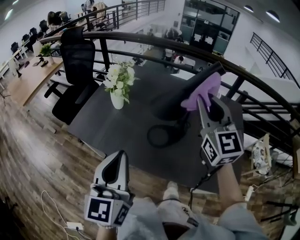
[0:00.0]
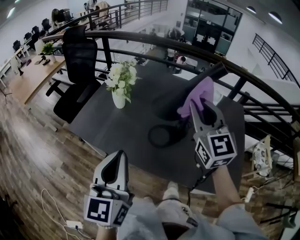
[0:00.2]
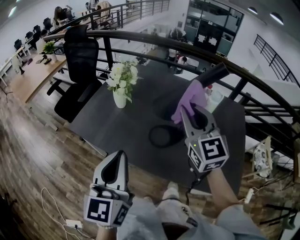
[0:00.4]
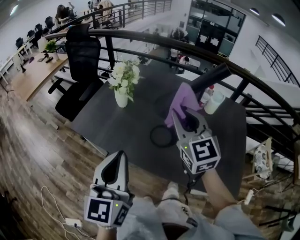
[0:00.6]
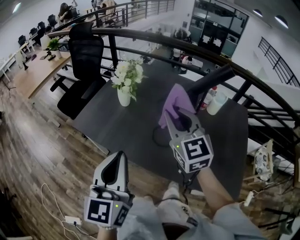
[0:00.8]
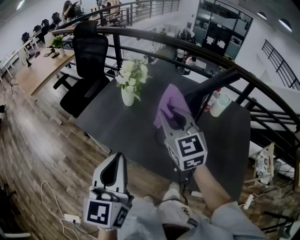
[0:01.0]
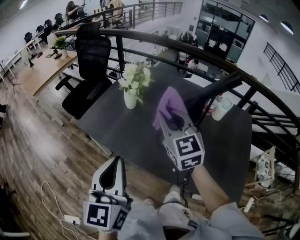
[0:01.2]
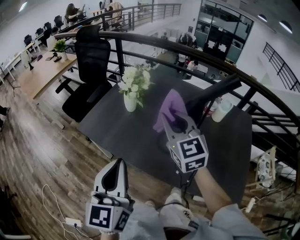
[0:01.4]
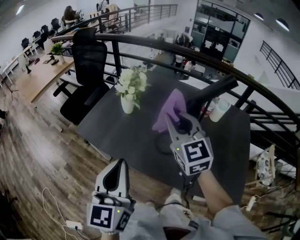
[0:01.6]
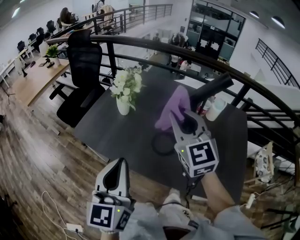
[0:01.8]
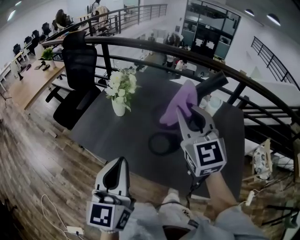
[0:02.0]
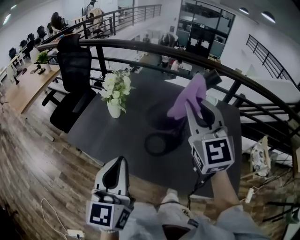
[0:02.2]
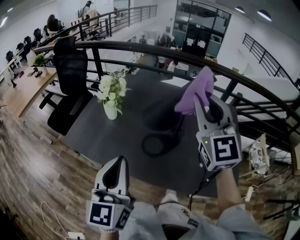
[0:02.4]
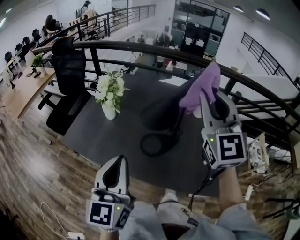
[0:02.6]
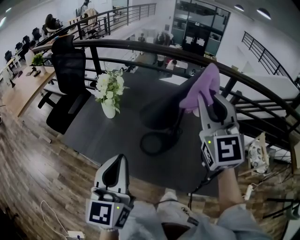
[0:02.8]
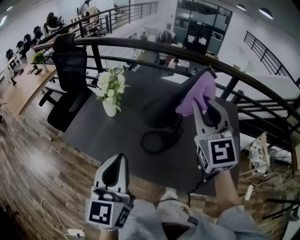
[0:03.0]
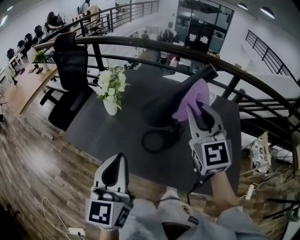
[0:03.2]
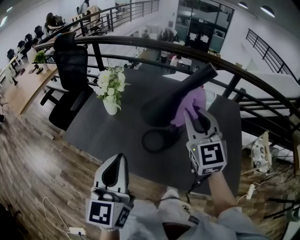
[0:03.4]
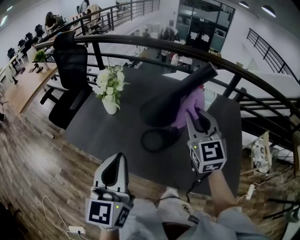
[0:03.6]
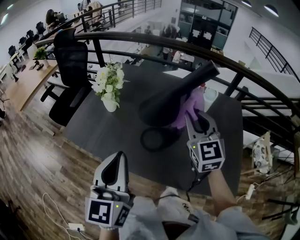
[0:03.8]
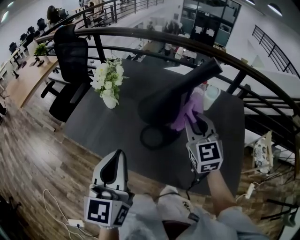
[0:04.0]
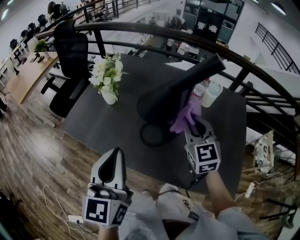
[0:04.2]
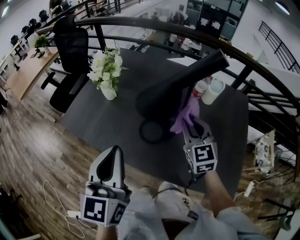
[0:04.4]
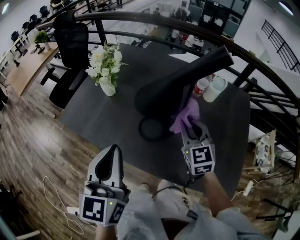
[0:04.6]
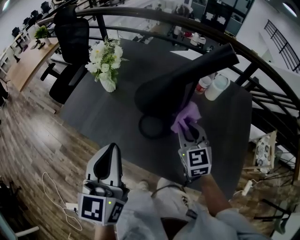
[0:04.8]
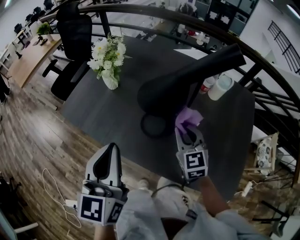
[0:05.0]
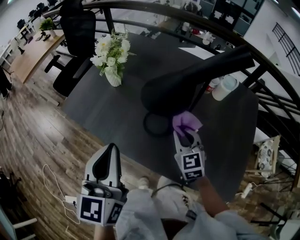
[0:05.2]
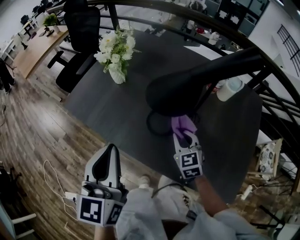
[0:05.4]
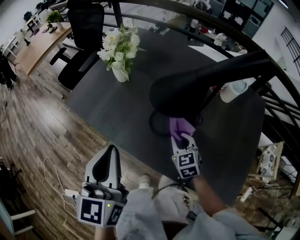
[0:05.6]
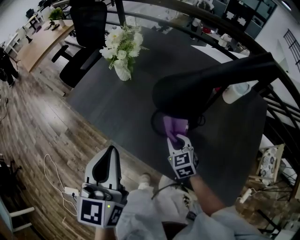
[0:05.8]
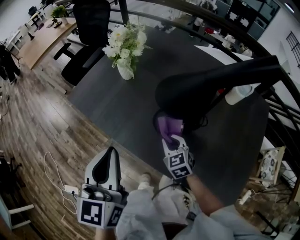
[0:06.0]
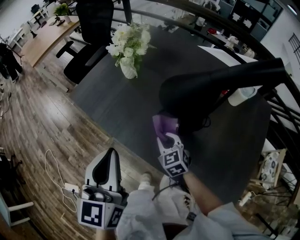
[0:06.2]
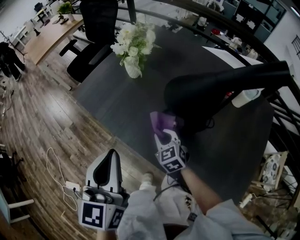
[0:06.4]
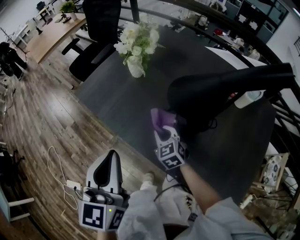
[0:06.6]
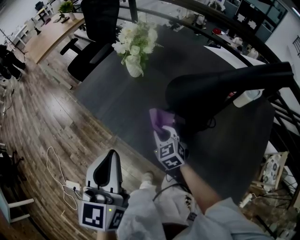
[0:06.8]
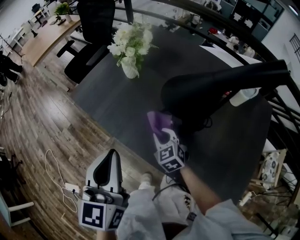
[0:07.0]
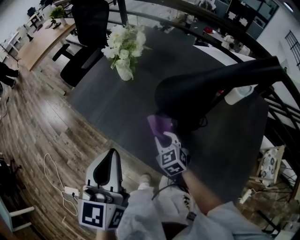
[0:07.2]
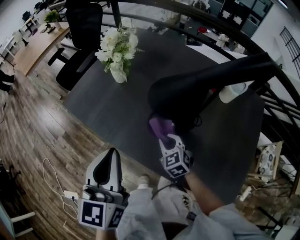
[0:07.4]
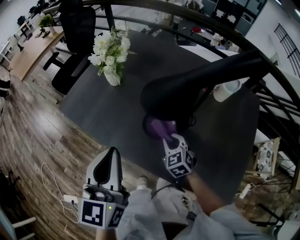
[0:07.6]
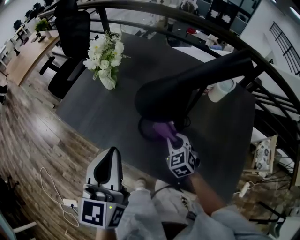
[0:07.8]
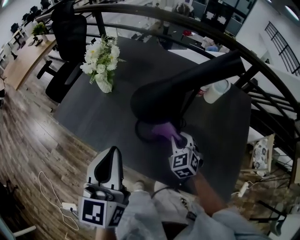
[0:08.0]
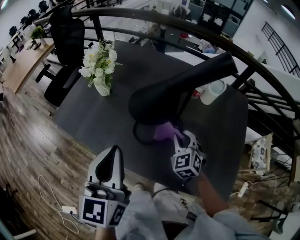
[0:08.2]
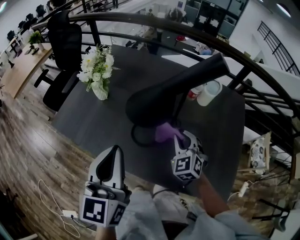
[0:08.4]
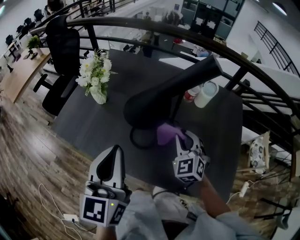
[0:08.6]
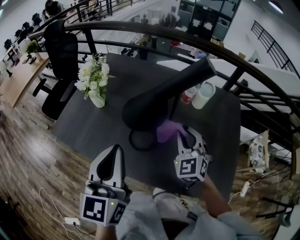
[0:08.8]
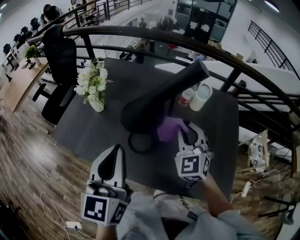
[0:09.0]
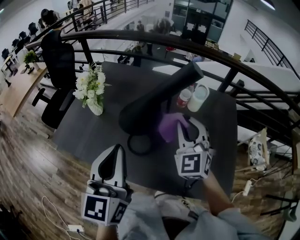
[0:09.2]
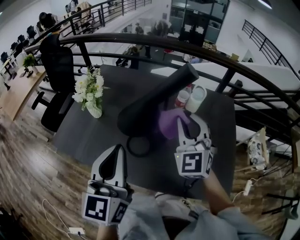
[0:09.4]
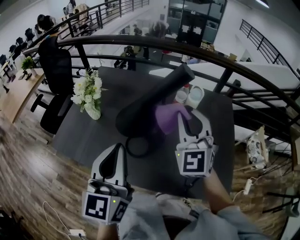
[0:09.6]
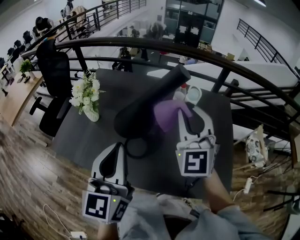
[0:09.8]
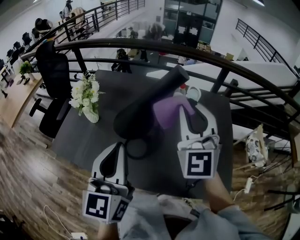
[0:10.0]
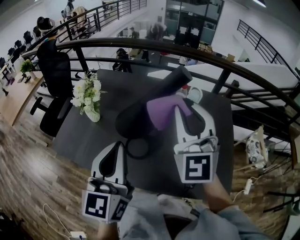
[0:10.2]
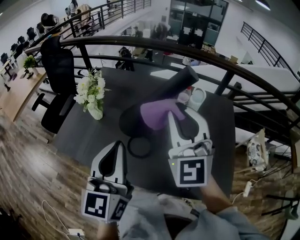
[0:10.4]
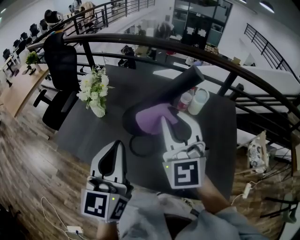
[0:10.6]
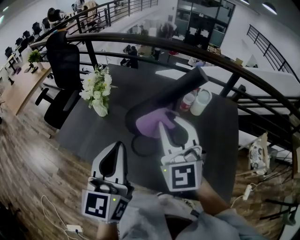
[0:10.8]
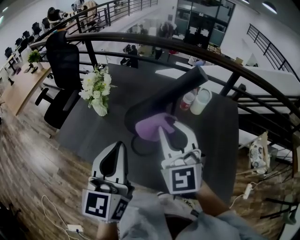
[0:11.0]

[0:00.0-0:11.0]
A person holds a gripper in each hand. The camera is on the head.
0:00.0 to 0:01.6: The right gripper travels to the left and downward by about 15 cm.
0:01.6 to 0:03.2: The left gripper is displaced to the right by about 5 cm; the right gripper moves to the right, roughly 15 cm.
0:03.2 to 0:04.8: The right gripper shifts approximately 20 cm downward, and changes its angle by approximately 20 degrees.
0:04.8 to 0:06.2: The left gripper shifts by some 5 cm. The right gripper shifts some 20 cm downward and to the left, and swivels some 30 degrees.
0:06.2 to 0:07.8: The left gripper moves to the right, about 5 cm, while the right gripper travels to the right by approximately 10 cm.
0:07.8 to 0:09.4: The right gripper goes approximately 30 cm upward, and tilts its fingers approximately 40 degrees upward. Meanwhile the left gripper shifts approximately 10 cm upward and to the right.
0:09.4 to 0:11.0: The right gripper travels to the left by about 10 cm, and goes upward and returns, some 10 cm each way.

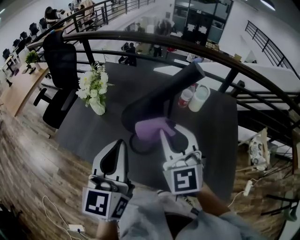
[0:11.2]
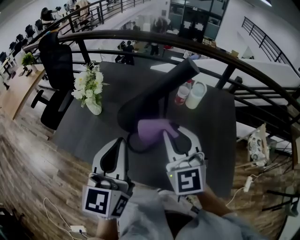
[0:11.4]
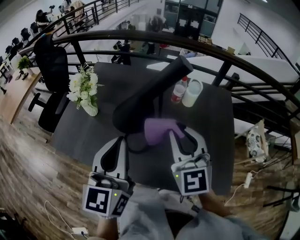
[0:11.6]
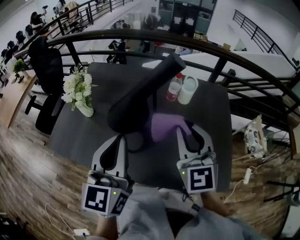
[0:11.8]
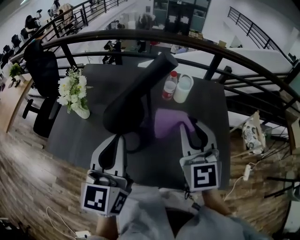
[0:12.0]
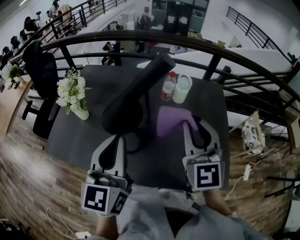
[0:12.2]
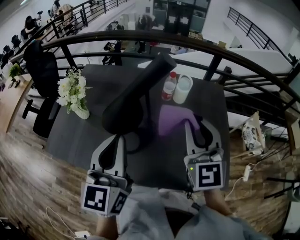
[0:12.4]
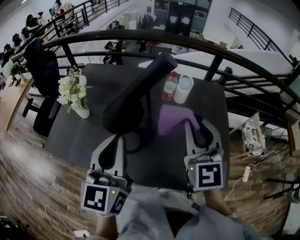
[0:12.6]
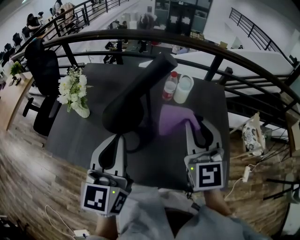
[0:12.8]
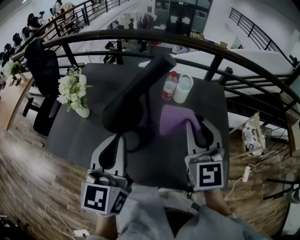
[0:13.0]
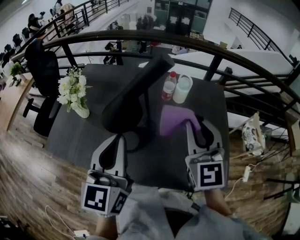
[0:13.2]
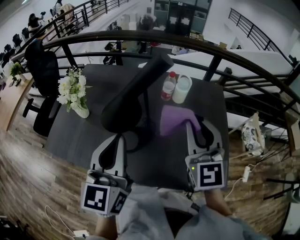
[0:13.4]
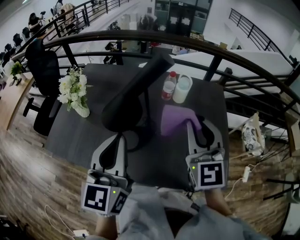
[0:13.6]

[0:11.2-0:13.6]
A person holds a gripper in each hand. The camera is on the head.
0:11.2 to 0:12.4: The right gripper is displaced to the right by about 15 cm; the left gripper moves about 5 cm.
0:12.4 to 0:13.6: Neither gripper changes place.

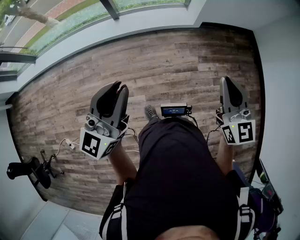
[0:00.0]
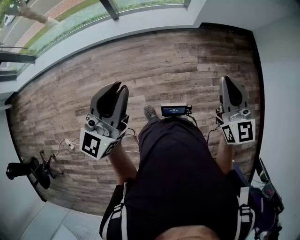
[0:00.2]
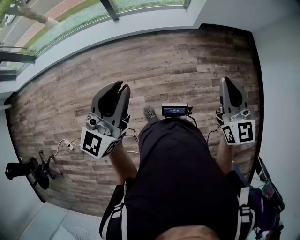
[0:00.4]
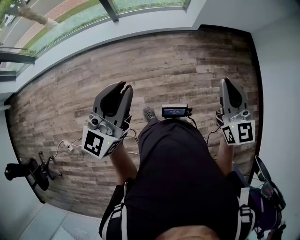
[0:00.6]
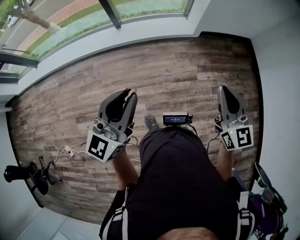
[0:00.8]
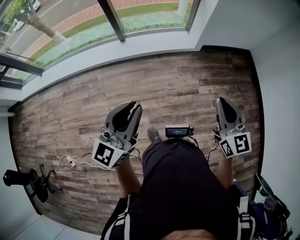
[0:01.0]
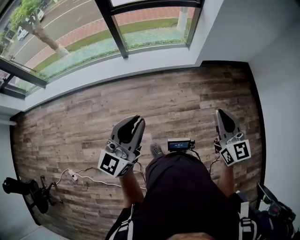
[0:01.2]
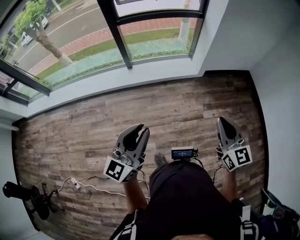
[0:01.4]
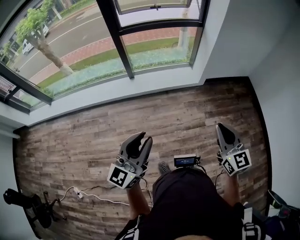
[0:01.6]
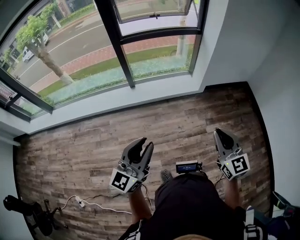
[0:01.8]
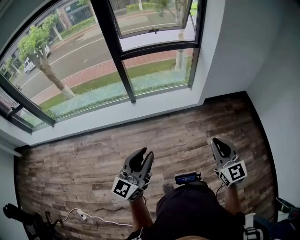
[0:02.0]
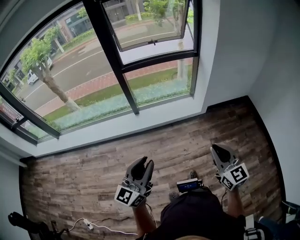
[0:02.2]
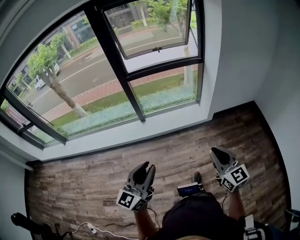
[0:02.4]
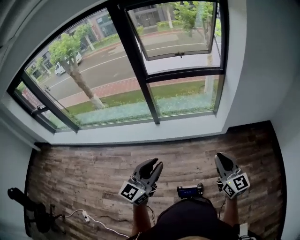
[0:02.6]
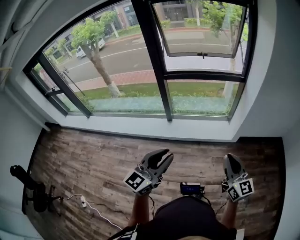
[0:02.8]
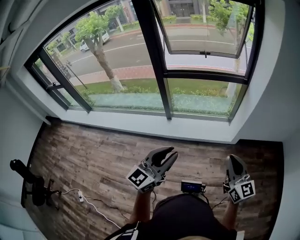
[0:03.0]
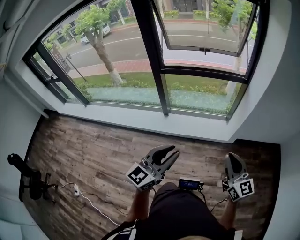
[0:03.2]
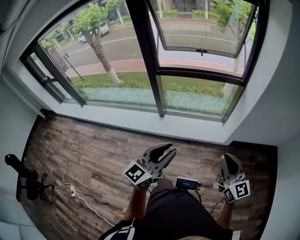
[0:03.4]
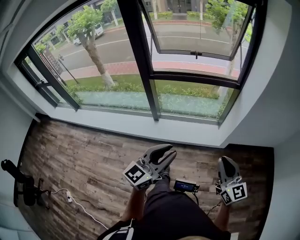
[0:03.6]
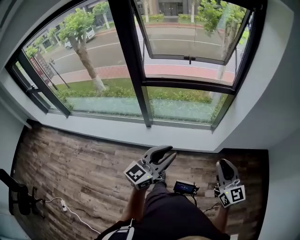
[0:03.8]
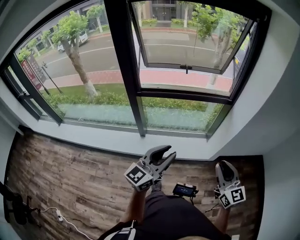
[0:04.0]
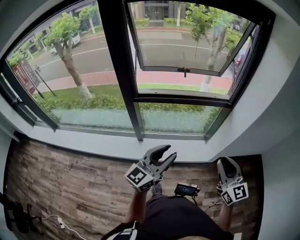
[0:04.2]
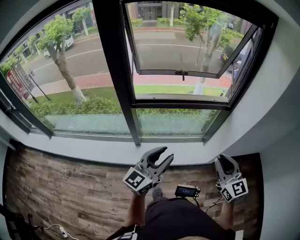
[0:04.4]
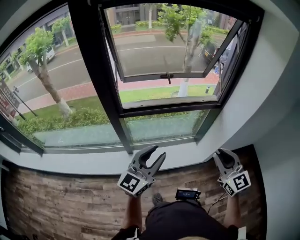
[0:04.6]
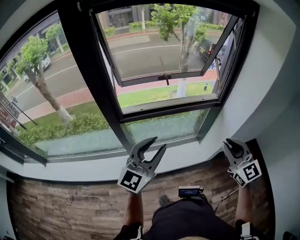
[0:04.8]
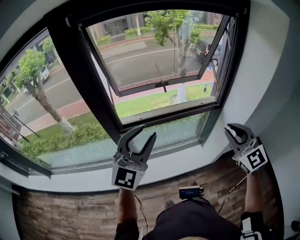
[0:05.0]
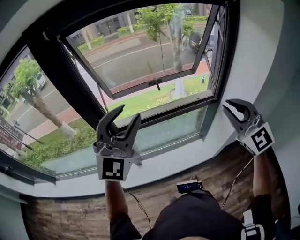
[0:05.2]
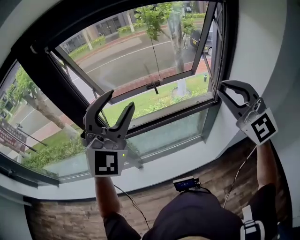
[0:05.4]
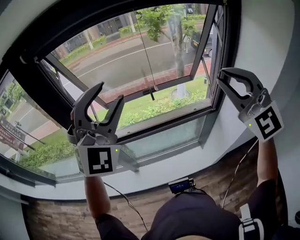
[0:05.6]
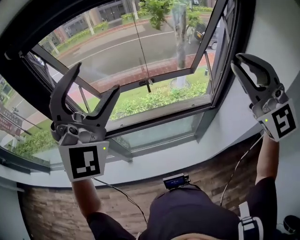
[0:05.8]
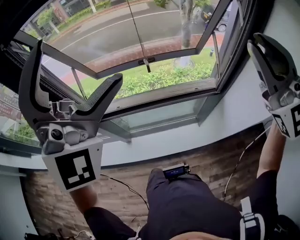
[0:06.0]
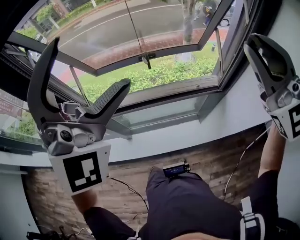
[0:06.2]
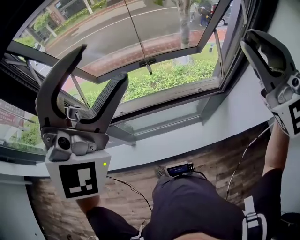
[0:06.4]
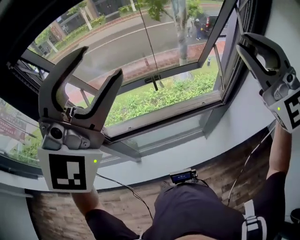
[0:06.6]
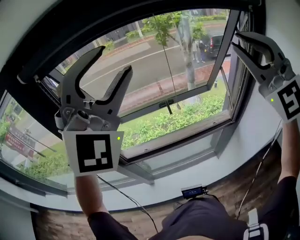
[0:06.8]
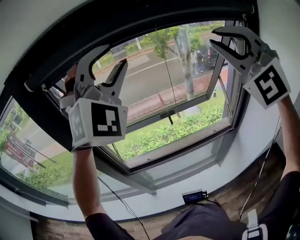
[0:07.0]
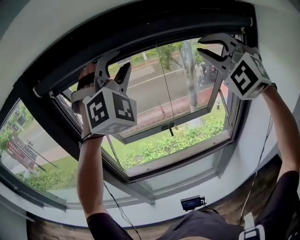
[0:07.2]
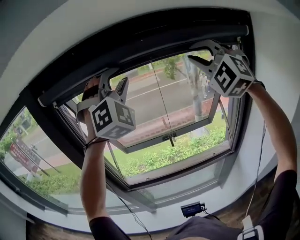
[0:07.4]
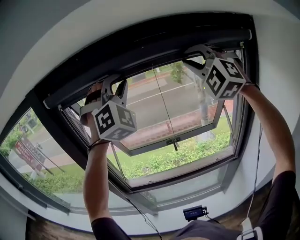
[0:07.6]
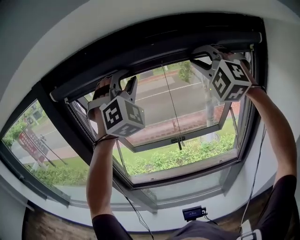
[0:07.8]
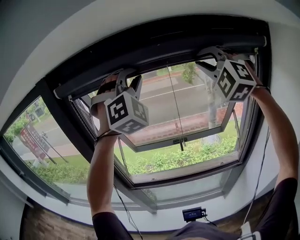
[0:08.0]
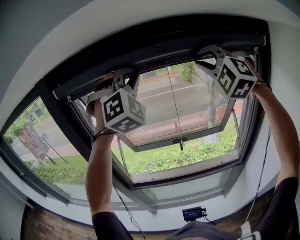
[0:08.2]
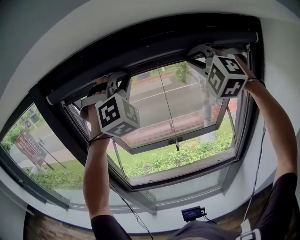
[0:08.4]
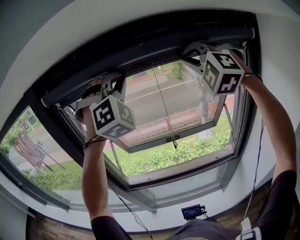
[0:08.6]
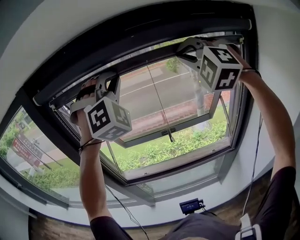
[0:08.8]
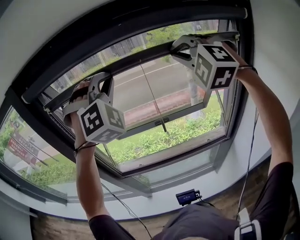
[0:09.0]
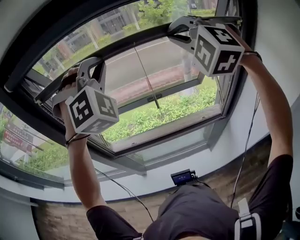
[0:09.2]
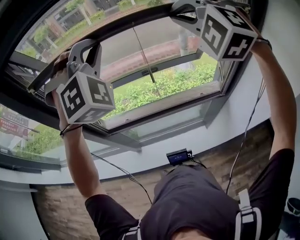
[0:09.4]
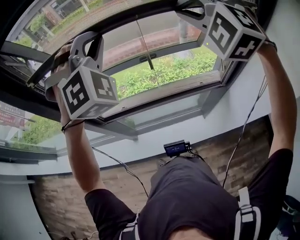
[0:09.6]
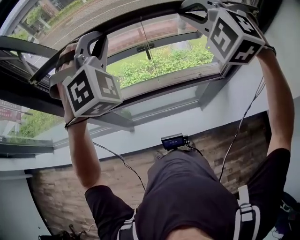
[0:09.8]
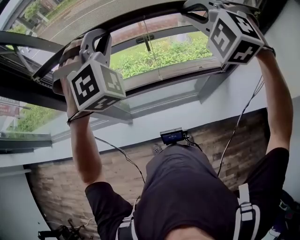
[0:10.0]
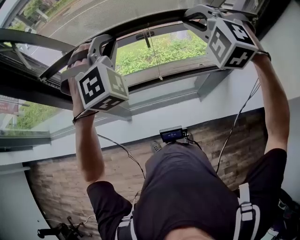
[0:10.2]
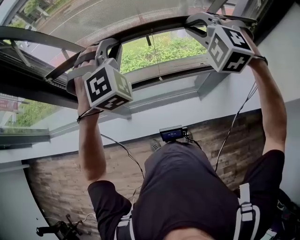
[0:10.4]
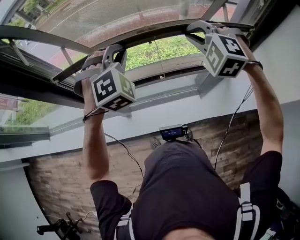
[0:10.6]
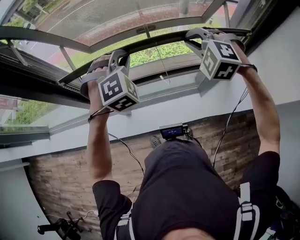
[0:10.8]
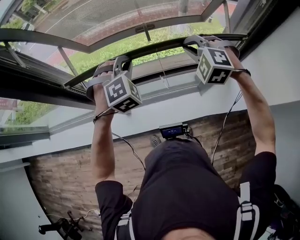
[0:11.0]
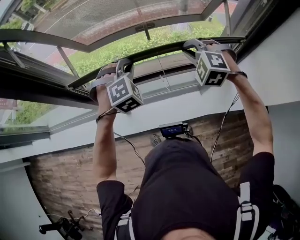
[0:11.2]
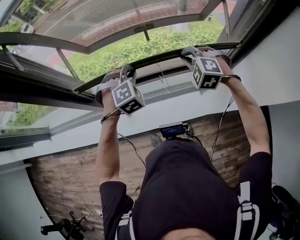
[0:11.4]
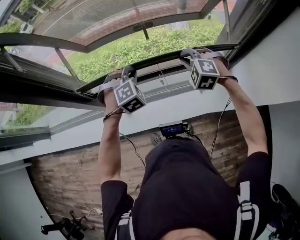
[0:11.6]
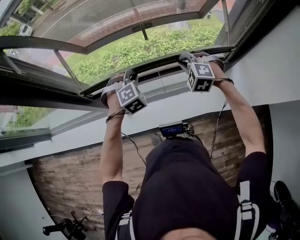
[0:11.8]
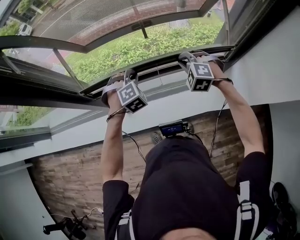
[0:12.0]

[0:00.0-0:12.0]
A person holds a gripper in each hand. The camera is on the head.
0:00.0 to 0:01.6: Both grippers travel together to the left, about 10 cm.
0:01.6 to 0:03.0: Both grippers move forward, some 20 cm. The right gripper swivels about 20 degrees.
0:03.0 to 0:04.4: The two grippers go roughly 30 cm forward.
0:04.4 to 0:06.0: Both grippers move upward and forward, some 40 cm. The left gripper rolls clockwise, seen from behind, by about 80 degrees, and opens its fingers; the right gripper turns by about 40 degrees.
0:06.0 to 0:07.6: The left gripper is displaced forward and upward by some 20 cm, changes its angle by approximately 30 degrees, and closes its fingers; the right gripper moves forward, to the left and upward, some 25 cm, and rotates roughly 40 degrees.
0:07.6 to 0:09.0: The two grippers go about 5 cm downward.
0:09.0 to 0:10.4: The grippers both shift downward by roughly 25 cm. The left gripper rotates roughly 30 degrees, while the right gripper rotates approximately 30 degrees.
0:10.4 to 0:12.0: Both grippers move downward, some 25 cm. The left gripper turns by about 20 degrees.
